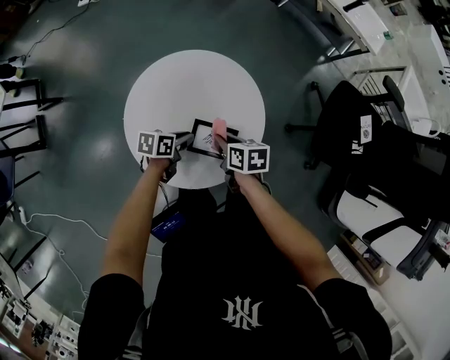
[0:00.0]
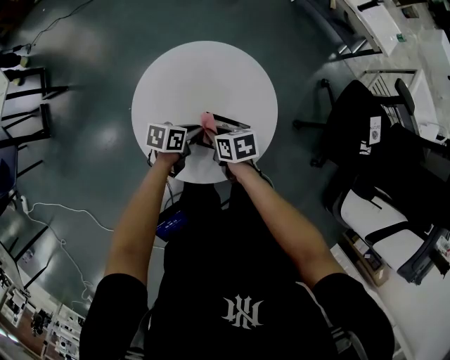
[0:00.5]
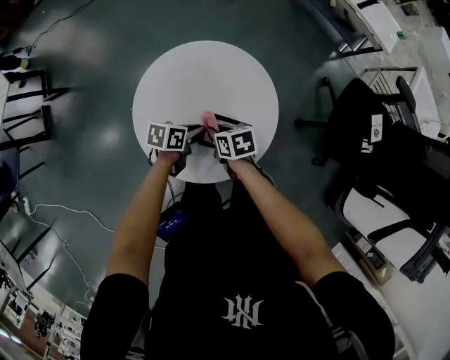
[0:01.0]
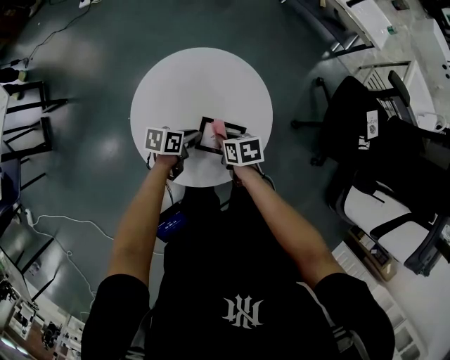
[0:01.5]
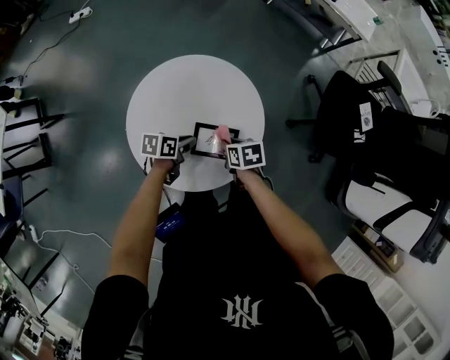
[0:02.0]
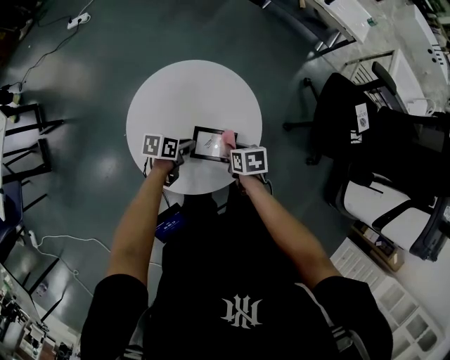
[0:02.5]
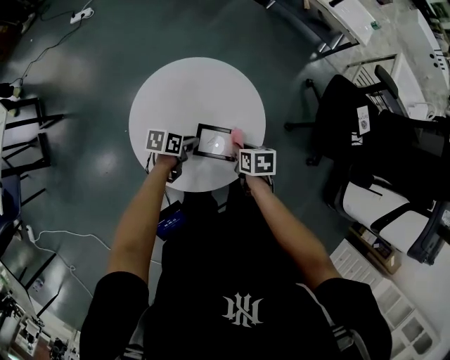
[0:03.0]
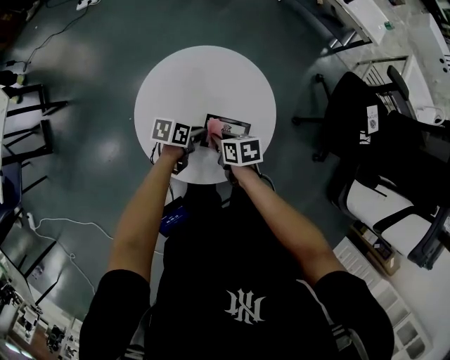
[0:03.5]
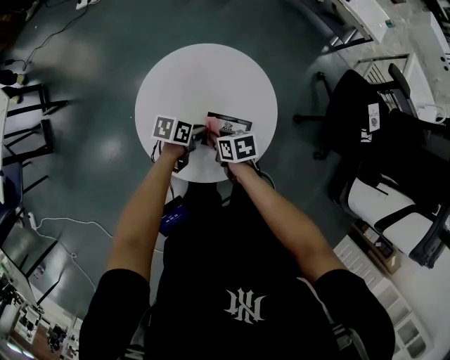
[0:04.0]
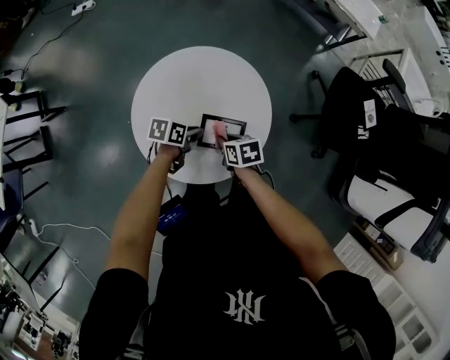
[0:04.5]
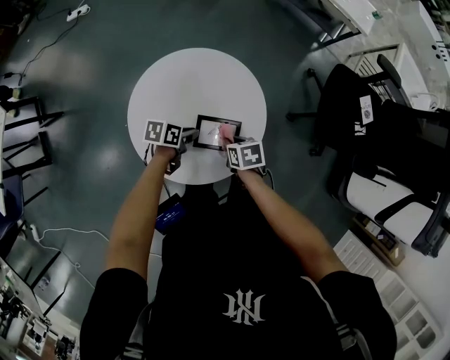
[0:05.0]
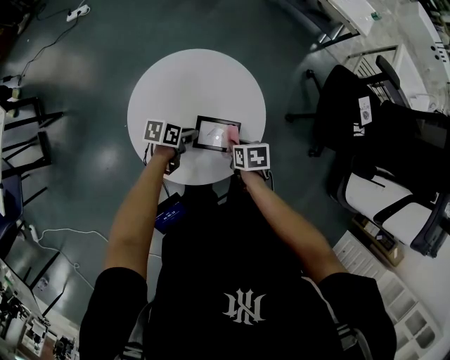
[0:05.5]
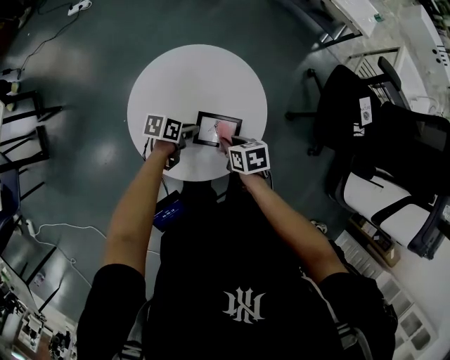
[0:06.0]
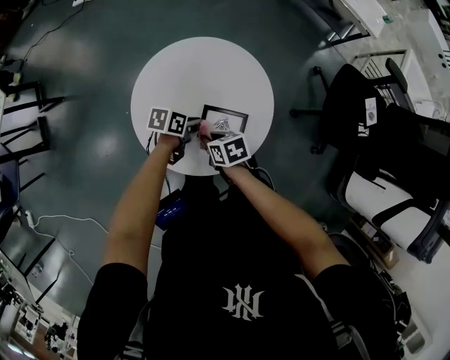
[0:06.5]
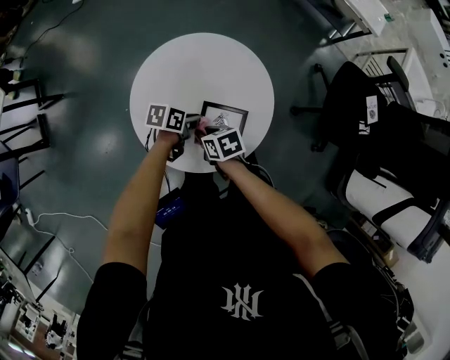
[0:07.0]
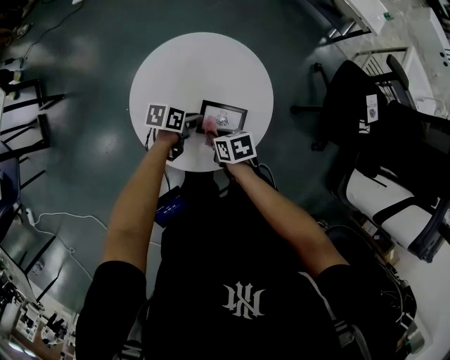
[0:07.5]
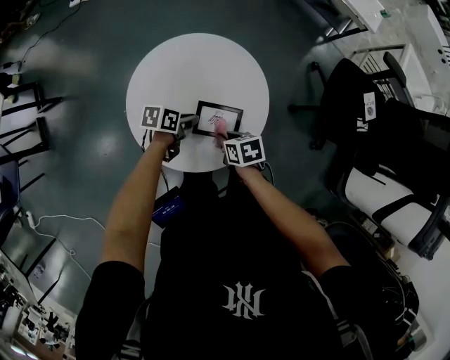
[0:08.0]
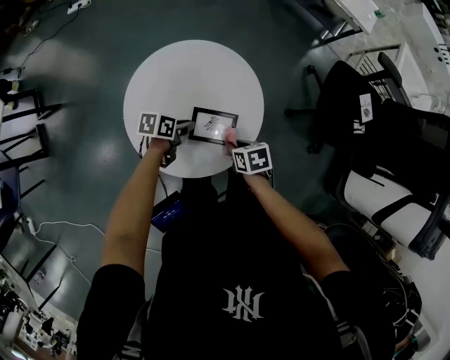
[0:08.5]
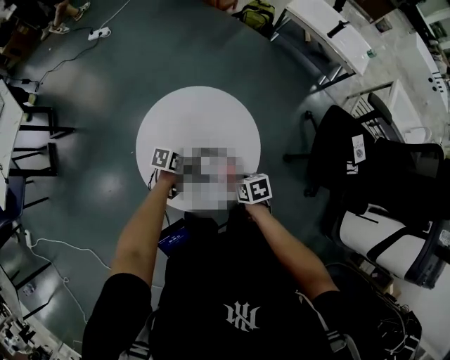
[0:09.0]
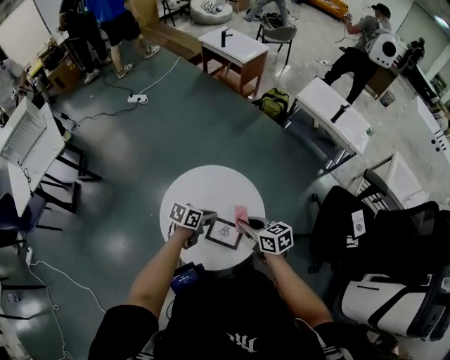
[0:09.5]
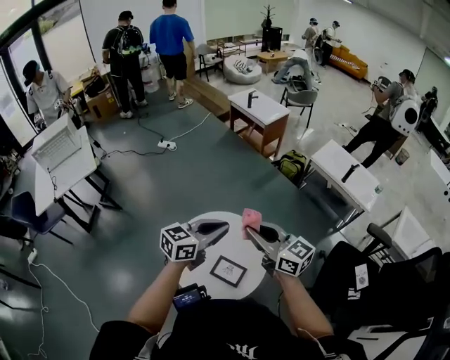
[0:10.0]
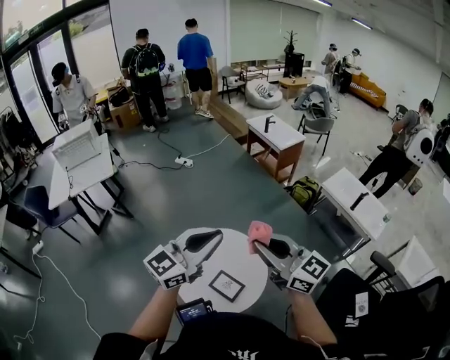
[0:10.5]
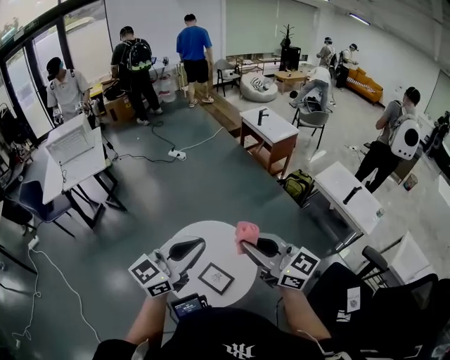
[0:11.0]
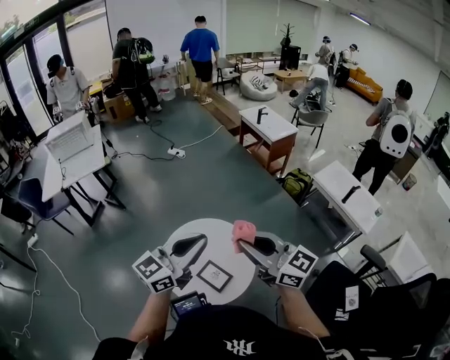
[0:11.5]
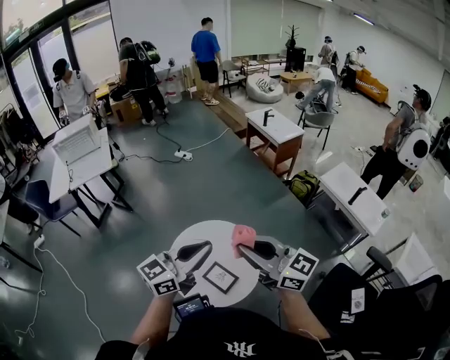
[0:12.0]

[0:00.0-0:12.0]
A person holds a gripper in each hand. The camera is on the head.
0:02.0 to 0:04.0: The right gripper ends up approximately 10 cm from where it was.
0:04.0 to 0:06.0: The right gripper shifts by some 10 cm.
0:08.0 to 0:10.0: Both grippers move upward, roughly 50 cm. The left gripper tips its fingers upward by roughly 30 degrees. The right gripper tips its fingers upward by about 60 degrees.
0:10.0 to 0:12.0: The left gripper heads backward and upward, covering roughly 15 cm, and swivels about 20 degrees; the right gripper shifts roughly 10 cm upward and backward, and changes its angle by approximately 20 degrees.

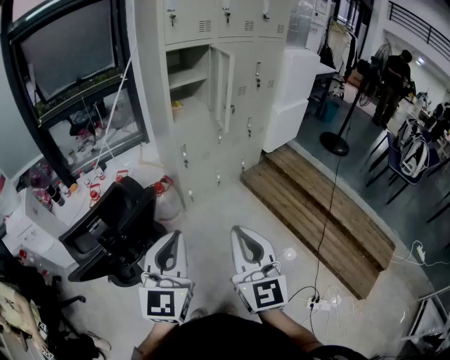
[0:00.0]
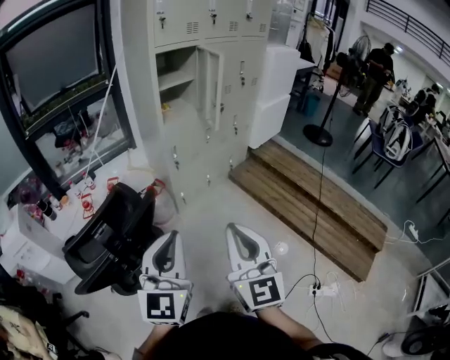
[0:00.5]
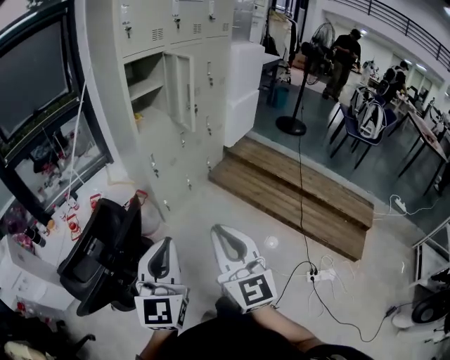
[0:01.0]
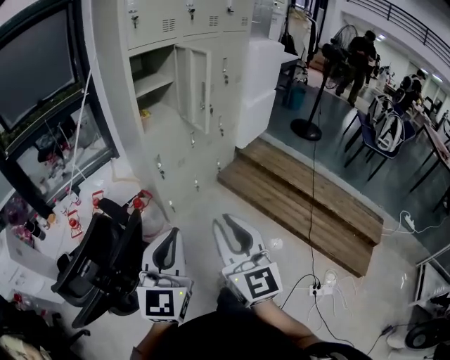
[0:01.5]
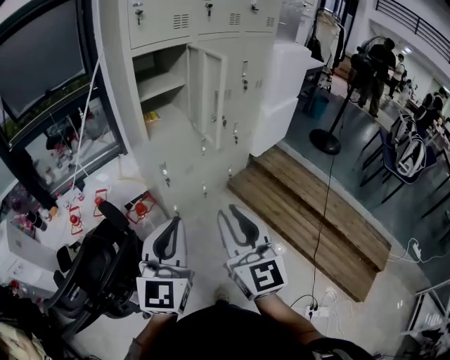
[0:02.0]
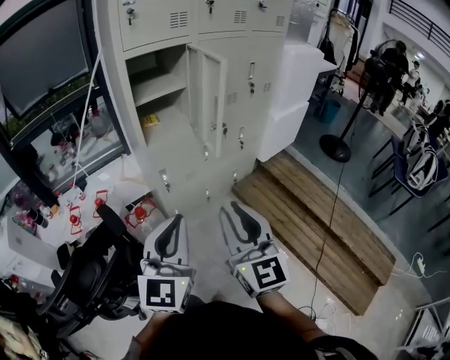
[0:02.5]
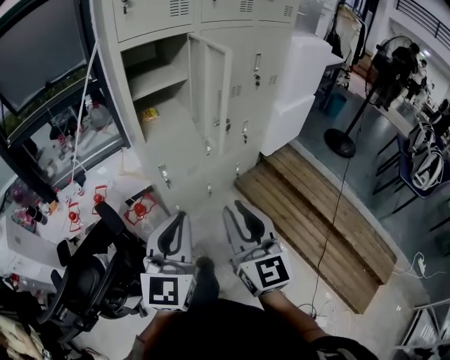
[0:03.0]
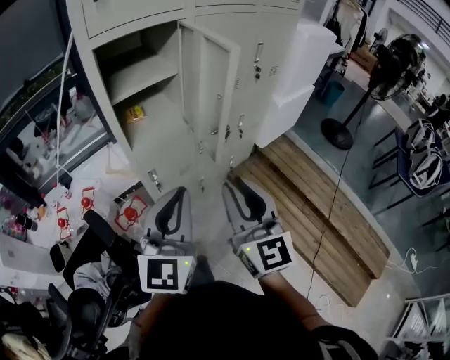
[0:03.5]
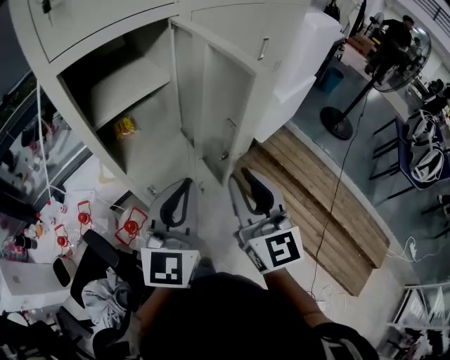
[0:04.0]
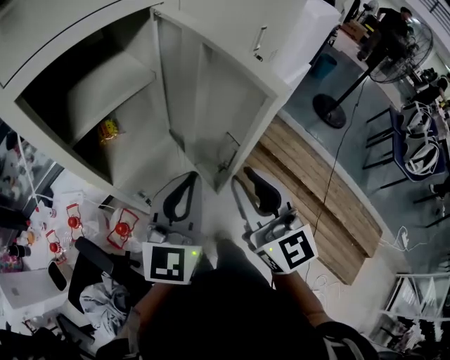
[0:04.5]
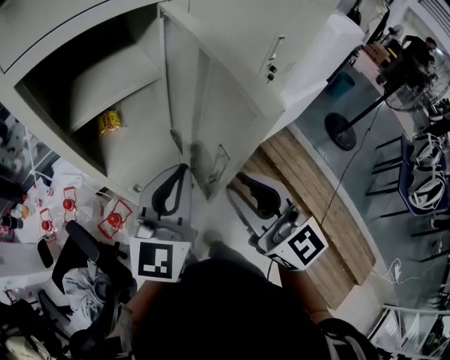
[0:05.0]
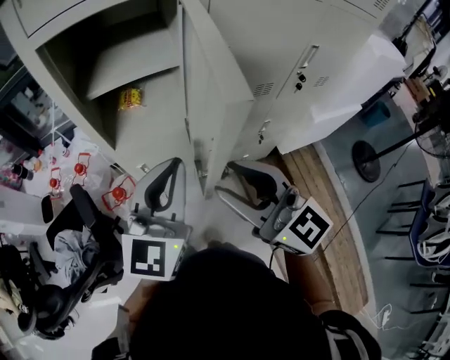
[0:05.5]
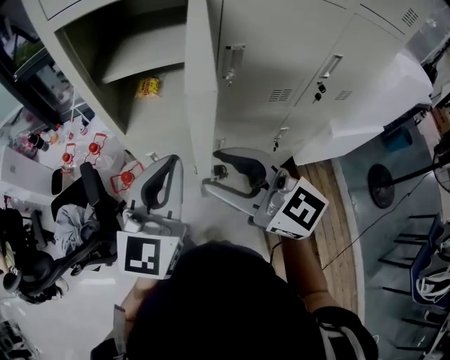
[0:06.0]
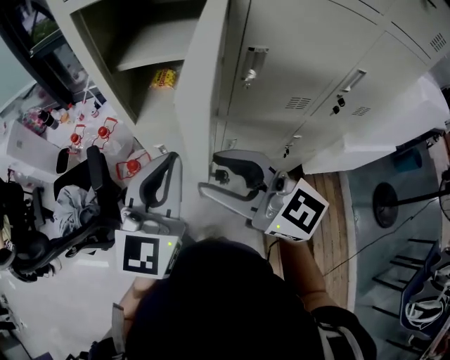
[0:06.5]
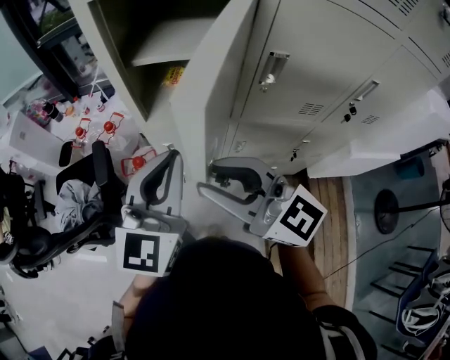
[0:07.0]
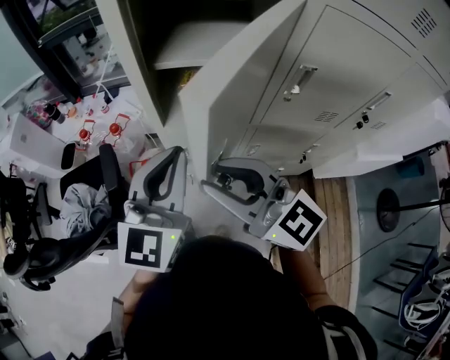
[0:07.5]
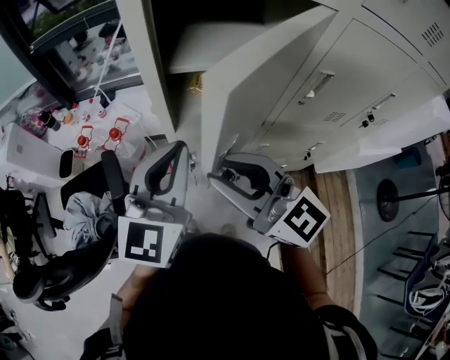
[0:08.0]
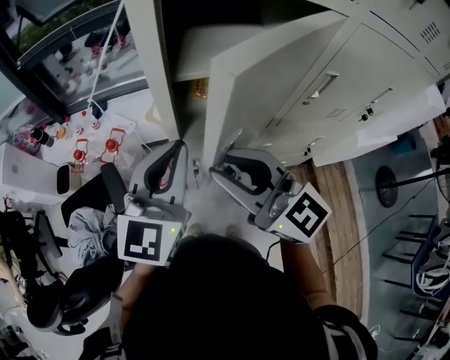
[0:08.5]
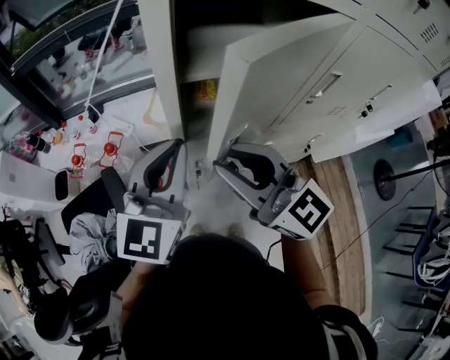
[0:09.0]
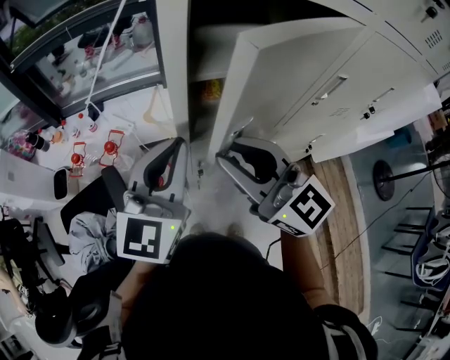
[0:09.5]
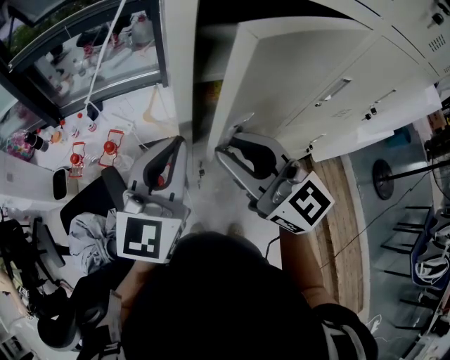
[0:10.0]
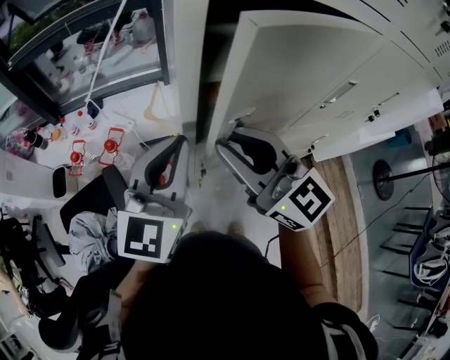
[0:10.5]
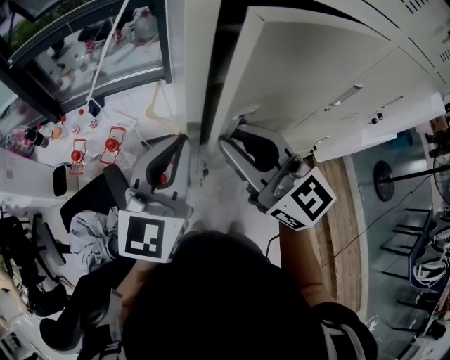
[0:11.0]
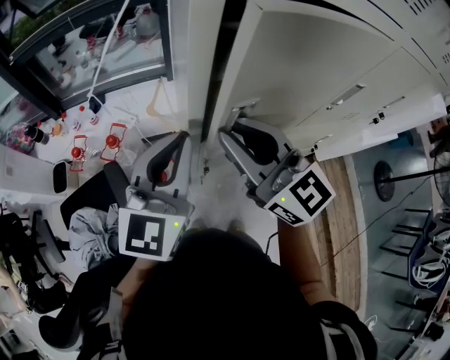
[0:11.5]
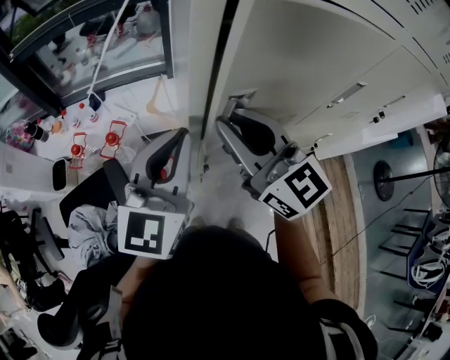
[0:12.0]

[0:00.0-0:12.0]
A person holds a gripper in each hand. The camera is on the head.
0:00.0 to 0:02.0: The two grippers go about 20 cm forward.
0:02.0 to 0:04.0: The grippers both shift forward by about 35 cm.
0:04.0 to 0:06.0: The right gripper shifts by approximately 5 cm, rotates some 70 degrees, and opens, while the left gripper changes place by about 10 cm, and rotates about 30 degrees.
0:06.0 to 0:08.0: The left gripper travels forward and to the left by approximately 15 cm; the right gripper is displaced to the left and forward by some 15 cm.
0:08.0 to 0:10.0: The left gripper moves forward and to the left, about 10 cm. Meanwhile the right gripper moves forward, approximately 10 cm.
0:10.0 to 0:12.0: The right gripper travels forward by roughly 5 cm.

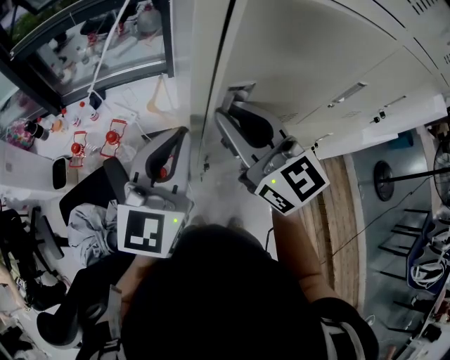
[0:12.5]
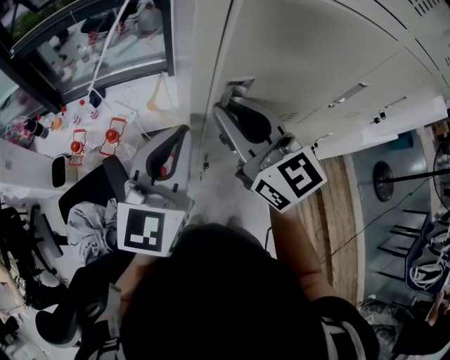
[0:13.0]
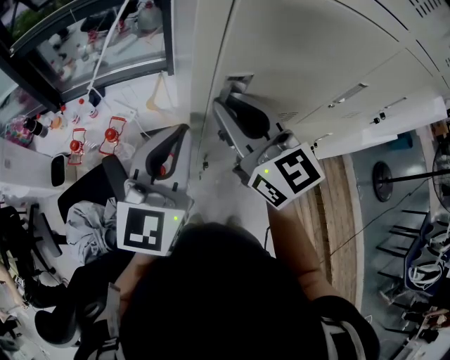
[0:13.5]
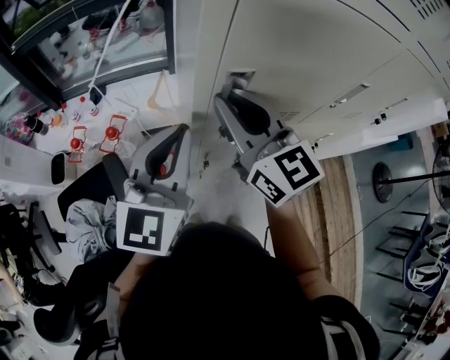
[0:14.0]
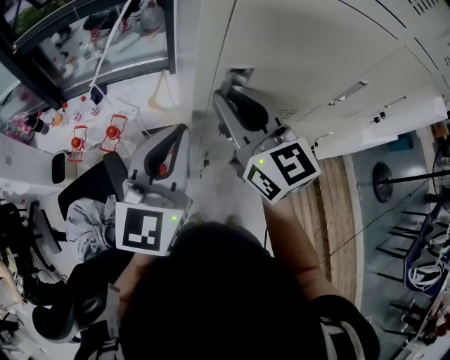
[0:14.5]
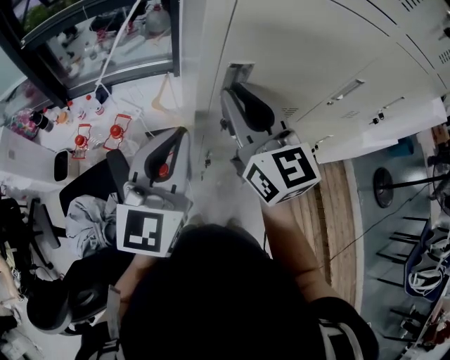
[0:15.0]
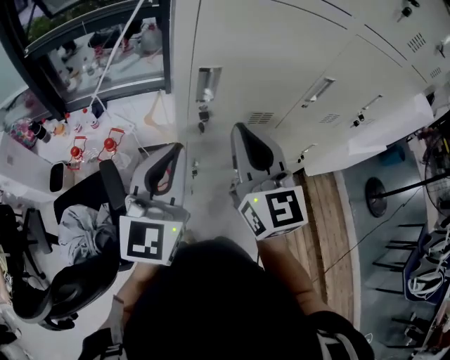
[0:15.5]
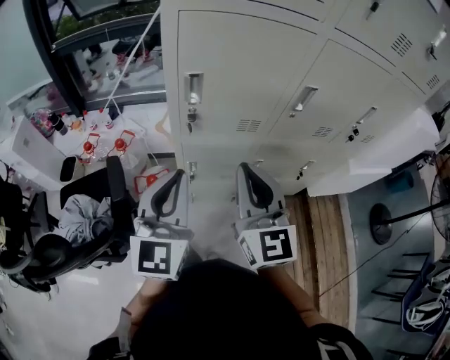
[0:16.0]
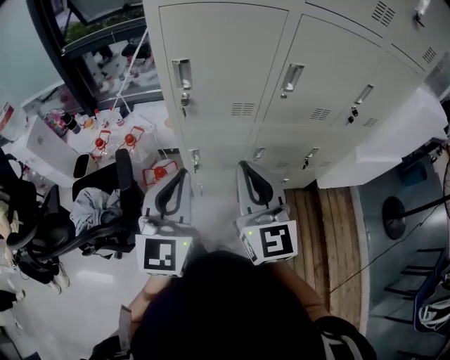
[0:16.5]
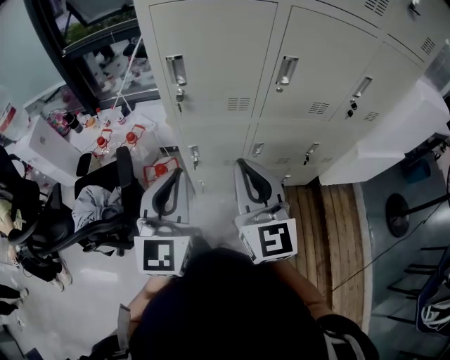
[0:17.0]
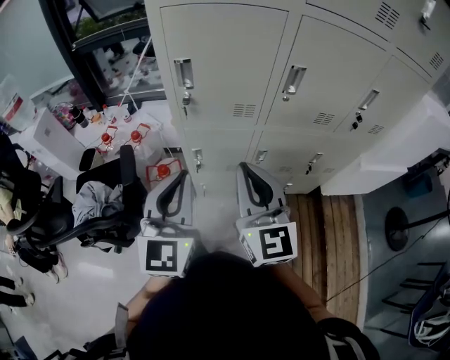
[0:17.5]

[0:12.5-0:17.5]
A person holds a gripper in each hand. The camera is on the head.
0:12.5 to 0:15.0: There are only small adjustments of the grippers.
0:15.0 to 0:17.5: Both grippers move backward and to the right, roughly 25 cm.
